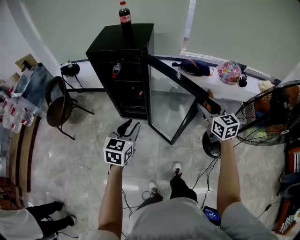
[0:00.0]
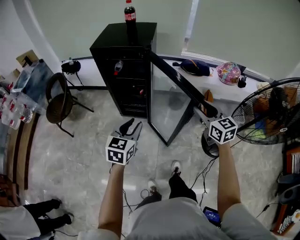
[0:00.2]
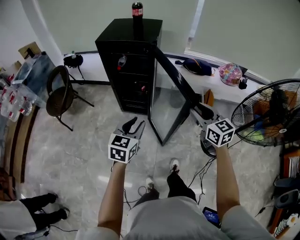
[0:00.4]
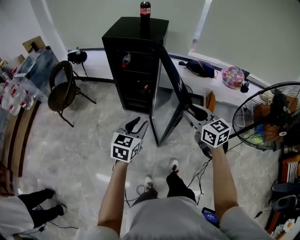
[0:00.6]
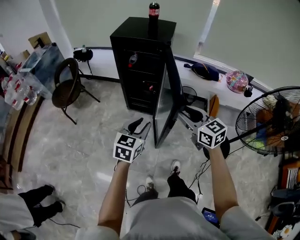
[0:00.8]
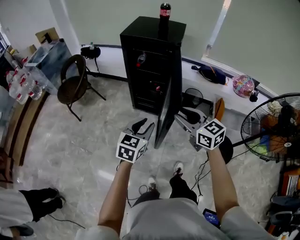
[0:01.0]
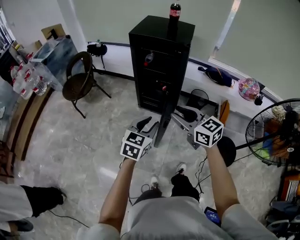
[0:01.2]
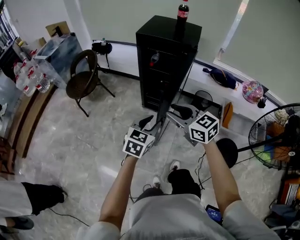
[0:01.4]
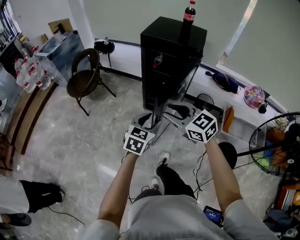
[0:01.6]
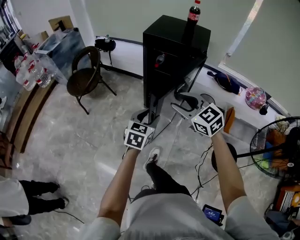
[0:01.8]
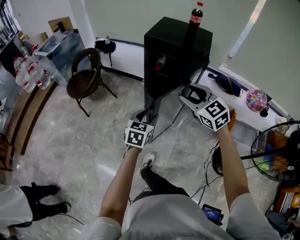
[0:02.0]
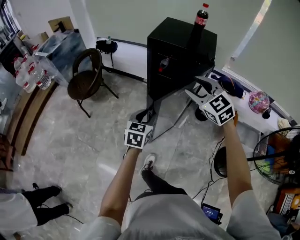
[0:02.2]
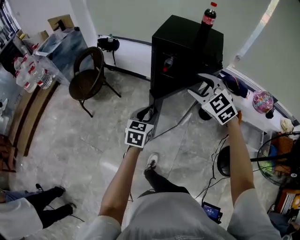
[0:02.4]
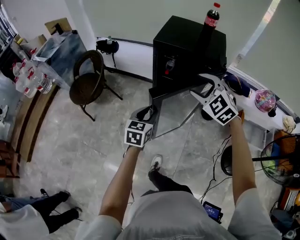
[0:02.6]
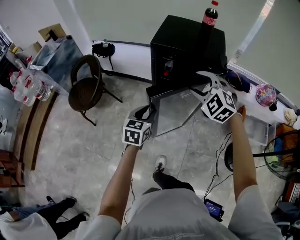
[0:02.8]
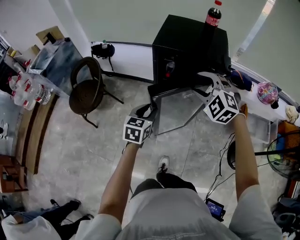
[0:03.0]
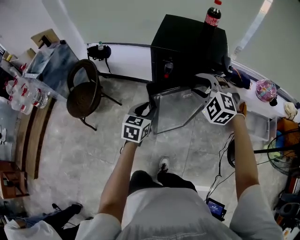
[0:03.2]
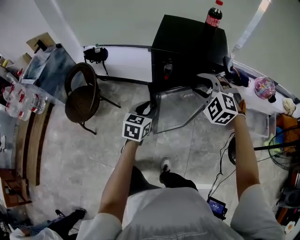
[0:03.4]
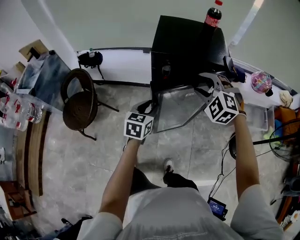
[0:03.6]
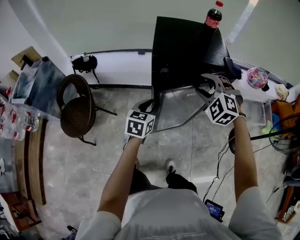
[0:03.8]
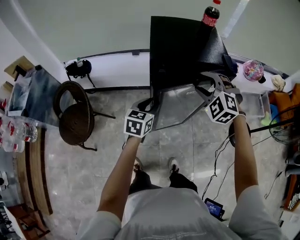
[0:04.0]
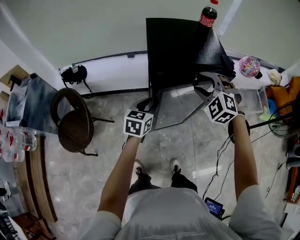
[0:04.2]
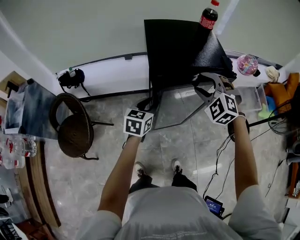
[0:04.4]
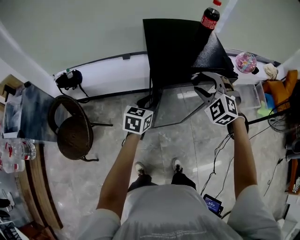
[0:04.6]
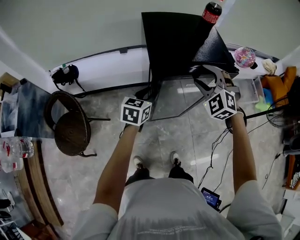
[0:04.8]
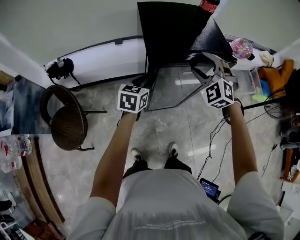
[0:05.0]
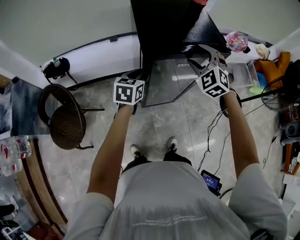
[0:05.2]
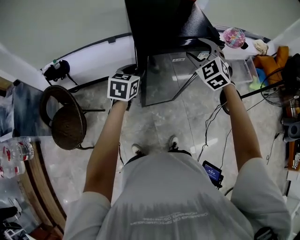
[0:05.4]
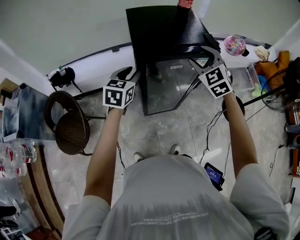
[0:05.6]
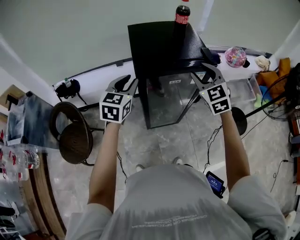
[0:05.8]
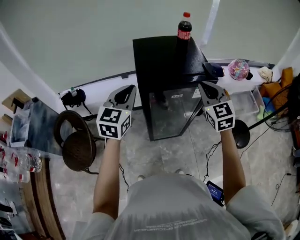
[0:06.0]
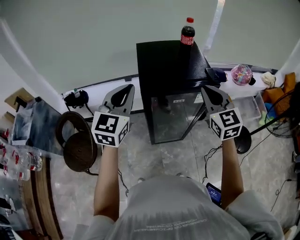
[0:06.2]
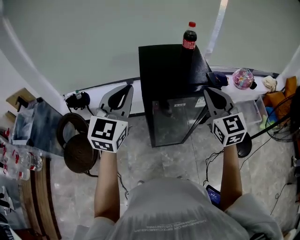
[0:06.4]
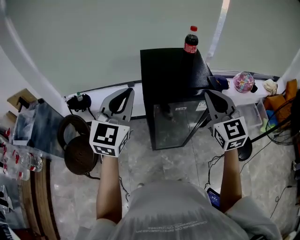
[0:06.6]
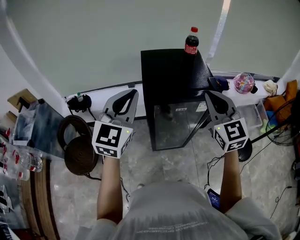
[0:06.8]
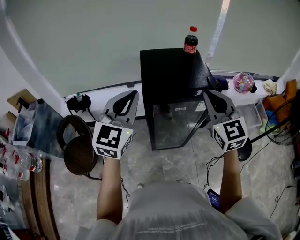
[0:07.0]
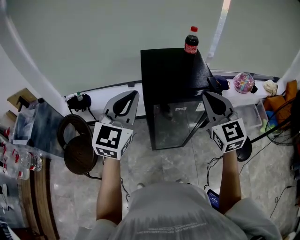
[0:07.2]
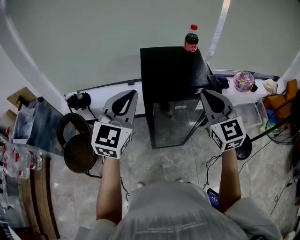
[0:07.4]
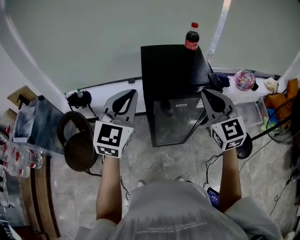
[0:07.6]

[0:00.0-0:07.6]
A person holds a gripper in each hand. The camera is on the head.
0:00.0 to 0:01.6: The right gripper goes some 40 cm to the left, and changes its angle by roughly 50 degrees, while the left gripper moves to the left, approximately 10 cm.
0:01.6 to 0:03.0: The right gripper goes about 25 cm forward, and rotates some 50 degrees; the left gripper travels forward and to the left by about 25 cm.
0:03.0 to 0:04.6: The left gripper changes place by some 20 cm, and turns by roughly 20 degrees. The right gripper moves roughly 10 cm, and turns by some 30 degrees.
0:04.6 to 0:06.0: The right gripper goes some 10 cm upward and to the right, rotates around the line of its fingers by roughly 40 degrees, clockwise from behind, and closes up, while the left gripper moves upward, roughly 20 cm, rotates approximately 30 degrees, and closes.
0:06.0 to 0:07.6: Both grippers travel together upward, approximately 10 cm.

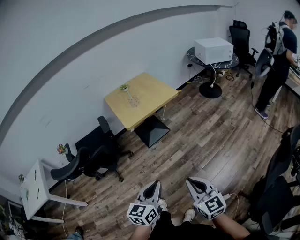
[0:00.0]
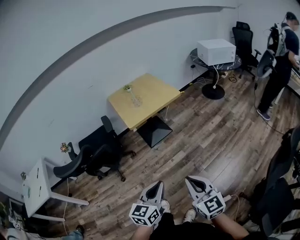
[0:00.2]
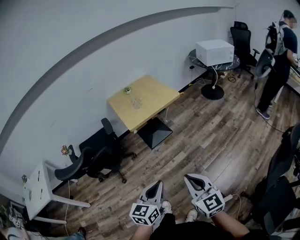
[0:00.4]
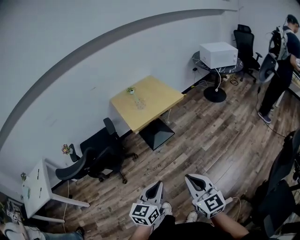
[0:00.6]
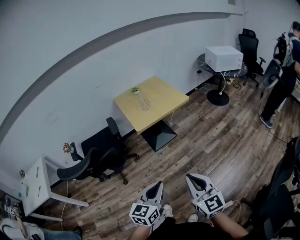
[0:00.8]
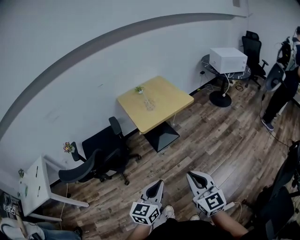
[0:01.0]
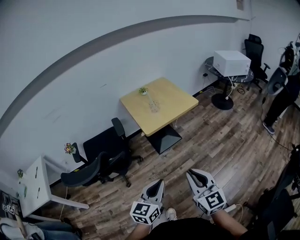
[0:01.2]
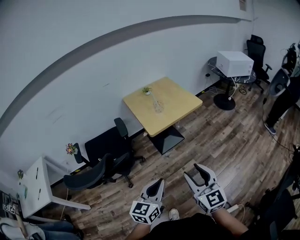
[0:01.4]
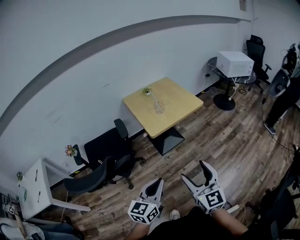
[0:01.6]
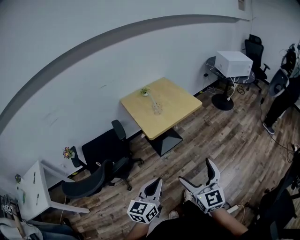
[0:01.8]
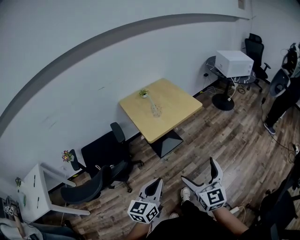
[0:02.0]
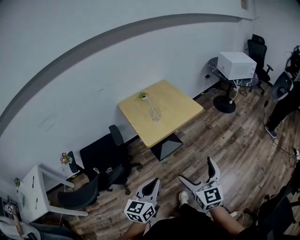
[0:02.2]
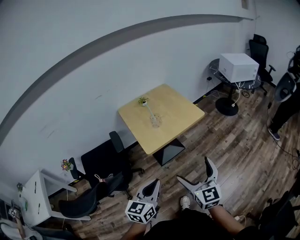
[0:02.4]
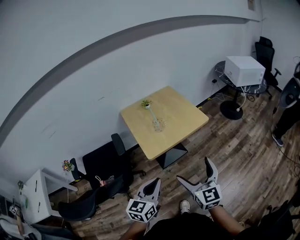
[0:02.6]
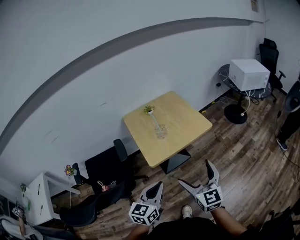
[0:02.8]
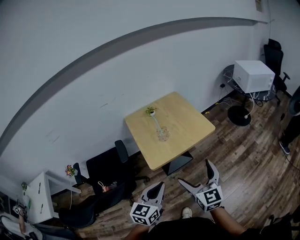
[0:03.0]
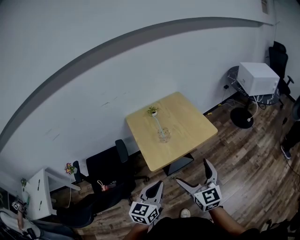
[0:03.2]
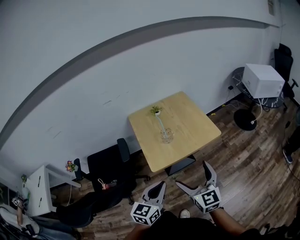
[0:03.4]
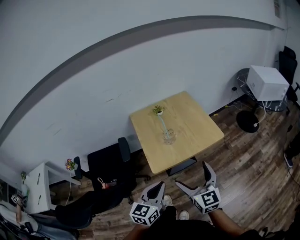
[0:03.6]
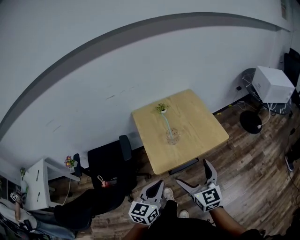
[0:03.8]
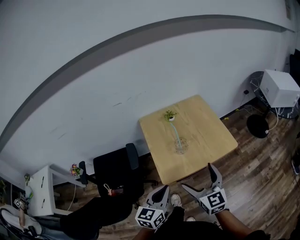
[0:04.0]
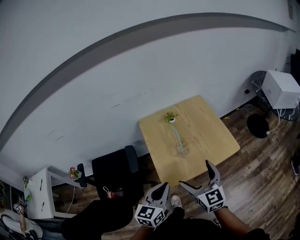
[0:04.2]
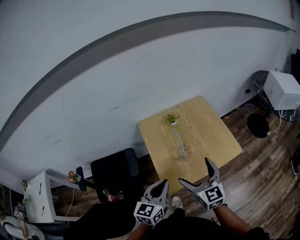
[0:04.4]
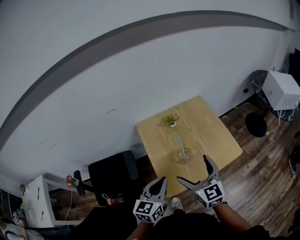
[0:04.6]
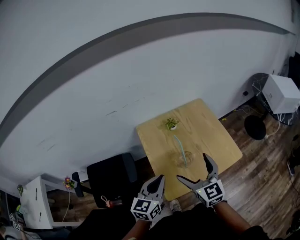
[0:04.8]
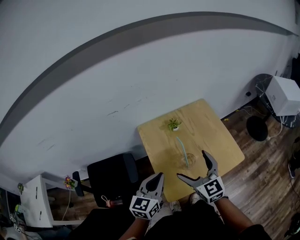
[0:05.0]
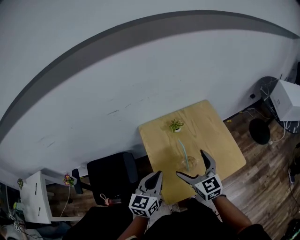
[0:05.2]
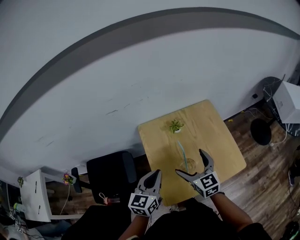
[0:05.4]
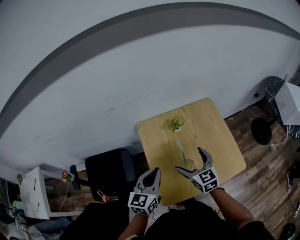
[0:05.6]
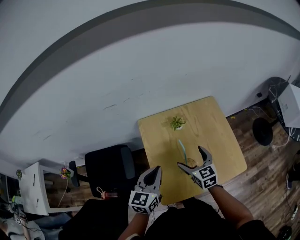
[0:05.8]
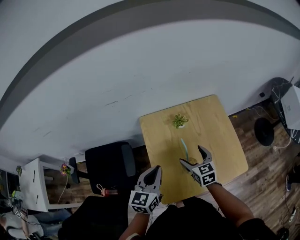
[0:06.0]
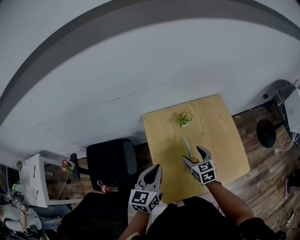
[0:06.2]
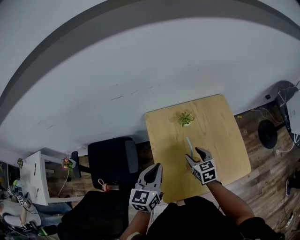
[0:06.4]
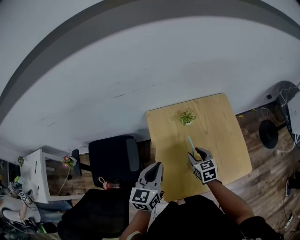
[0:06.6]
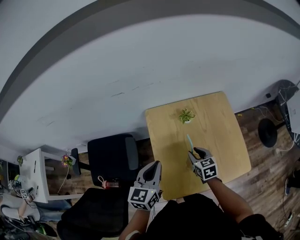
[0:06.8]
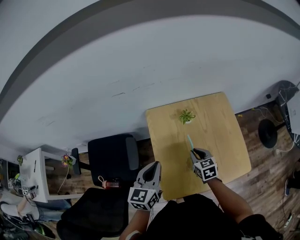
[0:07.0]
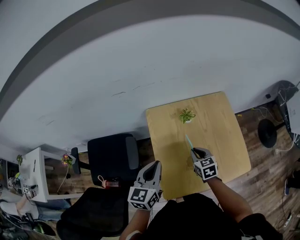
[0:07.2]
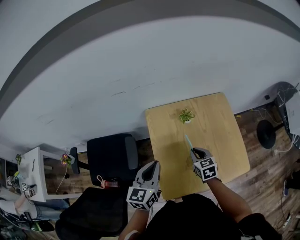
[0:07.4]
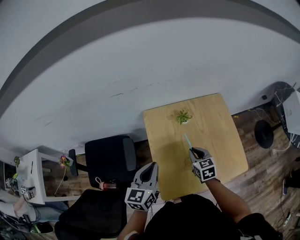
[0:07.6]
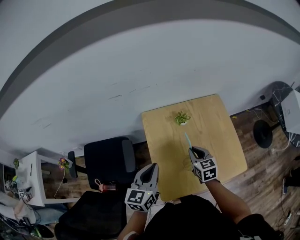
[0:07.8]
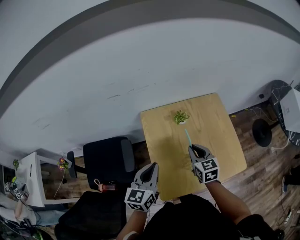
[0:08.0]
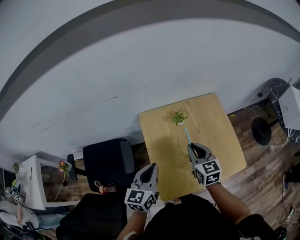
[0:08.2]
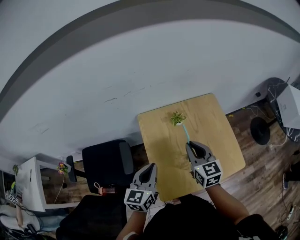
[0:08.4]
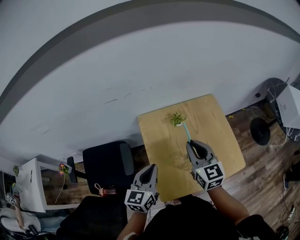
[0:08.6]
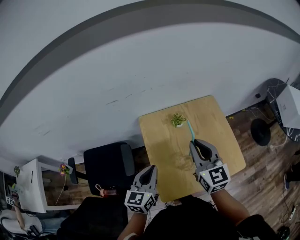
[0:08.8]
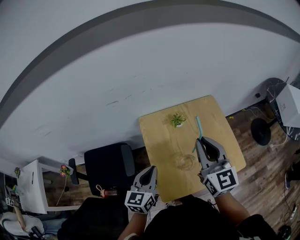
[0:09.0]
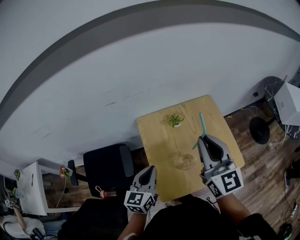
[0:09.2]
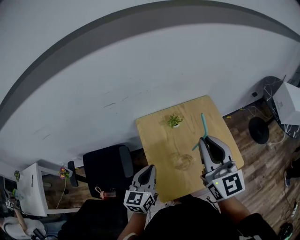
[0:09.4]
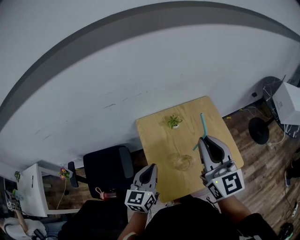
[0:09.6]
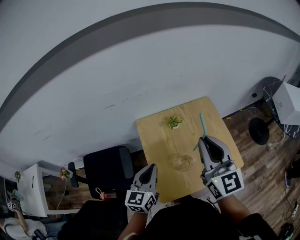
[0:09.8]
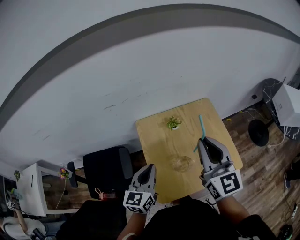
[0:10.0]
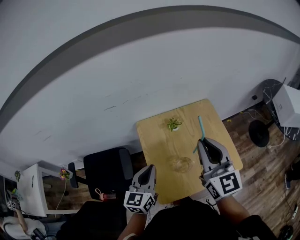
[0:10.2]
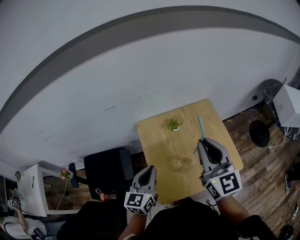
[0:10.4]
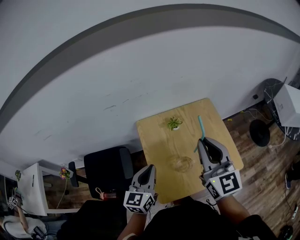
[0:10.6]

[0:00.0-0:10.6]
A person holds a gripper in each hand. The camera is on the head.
0:00.0 to 0:01.6: The grippers both shift to the left and forward by some 20 cm. The right gripper opens.
0:01.6 to 0:03.0: The grippers both shift forward by about 30 cm. The right gripper opens up.
0:03.0 to 0:04.6: The right gripper is displaced forward and to the left by about 30 cm. The left gripper heads forward, covering roughly 30 cm.
0:04.6 to 0:06.0: The left gripper is displaced forward by some 15 cm. Meanwhile the right gripper heads forward and downward, covering roughly 25 cm, and turns by about 20 degrees.
0:06.0 to 0:07.6: The right gripper closes up.
0:07.6 to 0:09.0: The right gripper is displaced upward by approximately 25 cm, and tilts its fingers some 40 degrees upward.
0:09.0 to 0:10.6: The grippers make only small movements.

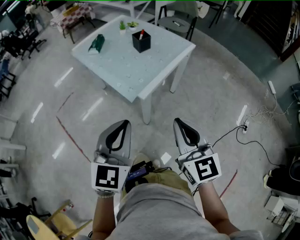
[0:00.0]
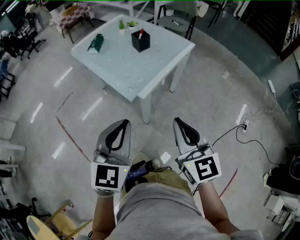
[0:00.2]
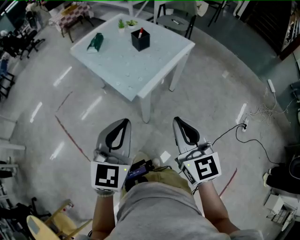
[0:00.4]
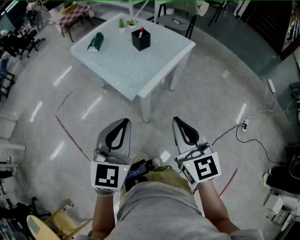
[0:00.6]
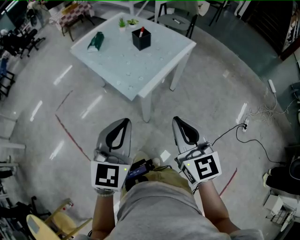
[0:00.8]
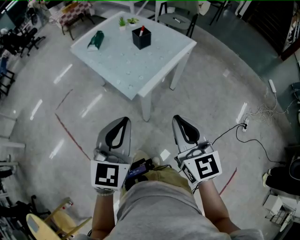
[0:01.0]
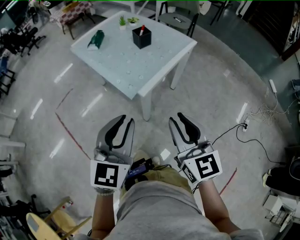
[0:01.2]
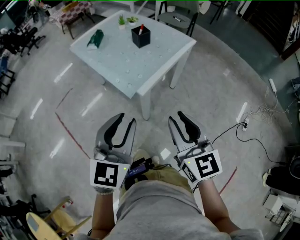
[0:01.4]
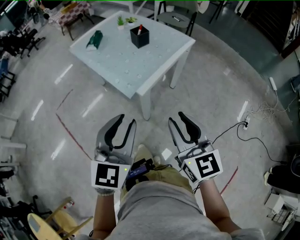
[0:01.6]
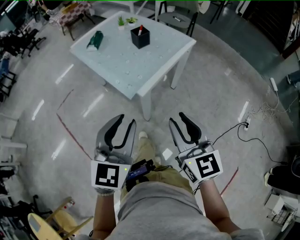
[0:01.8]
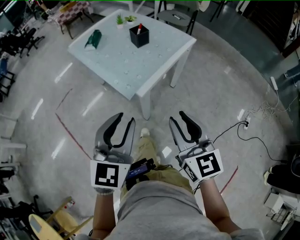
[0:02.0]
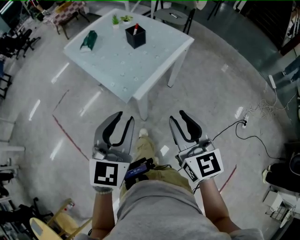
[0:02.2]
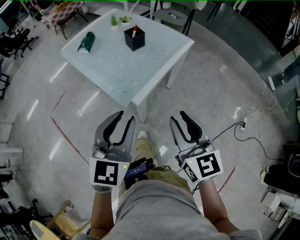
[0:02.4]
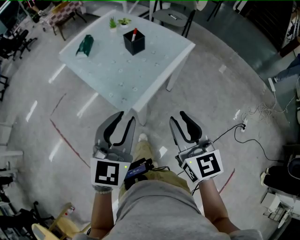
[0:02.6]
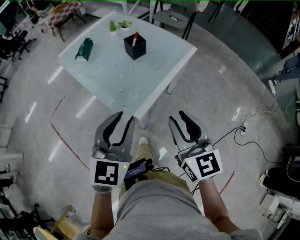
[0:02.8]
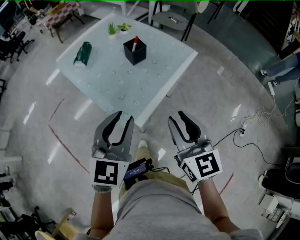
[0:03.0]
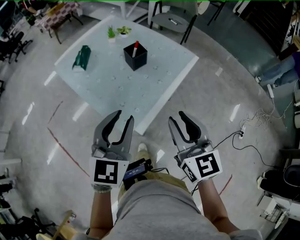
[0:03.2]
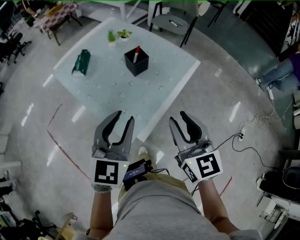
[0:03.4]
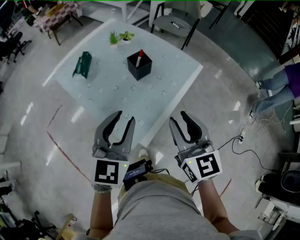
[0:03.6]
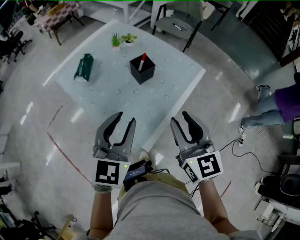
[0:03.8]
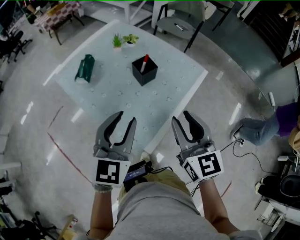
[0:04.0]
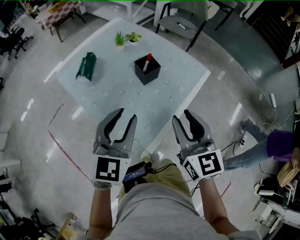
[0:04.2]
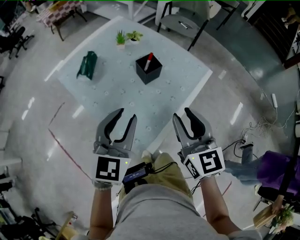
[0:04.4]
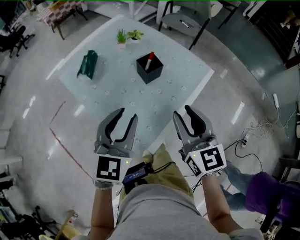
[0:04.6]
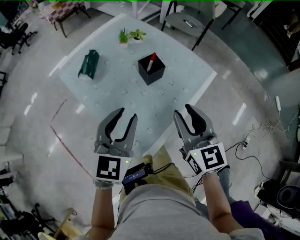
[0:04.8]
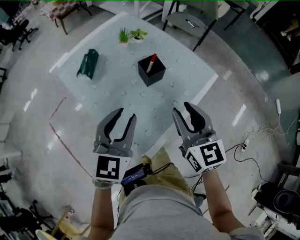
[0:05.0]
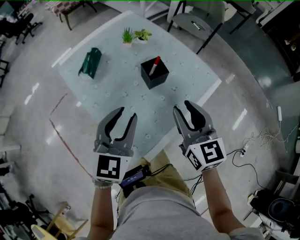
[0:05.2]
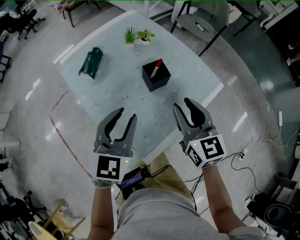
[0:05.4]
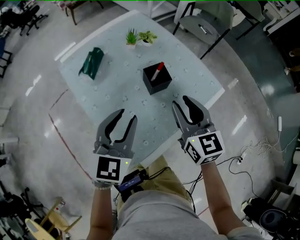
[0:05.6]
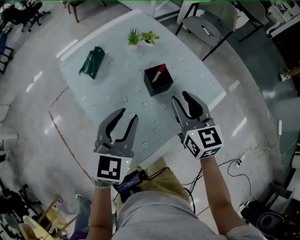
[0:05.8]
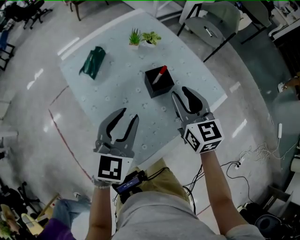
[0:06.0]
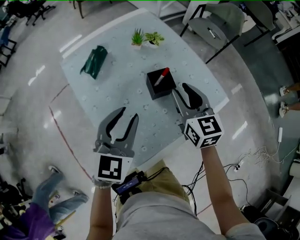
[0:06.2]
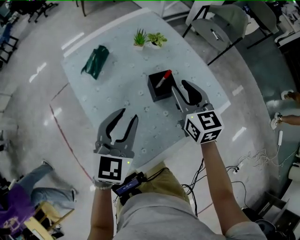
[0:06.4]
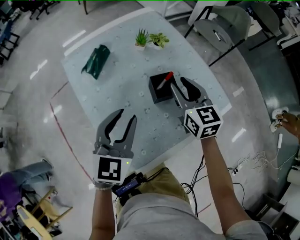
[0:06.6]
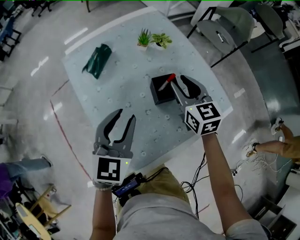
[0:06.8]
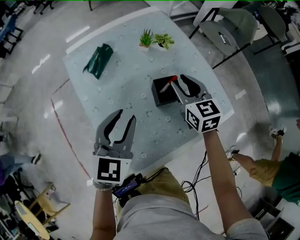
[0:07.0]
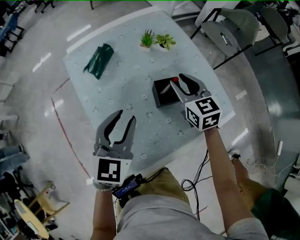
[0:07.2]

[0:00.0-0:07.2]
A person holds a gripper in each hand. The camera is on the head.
0:00.0 to 0:01.4: The right gripper opens up, while the left gripper opens.
0:01.4 to 0:02.8: Both grippers move forward, roughly 15 cm.
0:02.8 to 0:04.4: The grippers both shift forward by about 20 cm.
0:04.4 to 0:05.8: The left gripper is displaced forward by roughly 10 cm, while the right gripper goes about 15 cm forward.
0:05.8 to 0:07.2: The right gripper travels forward and downward by about 15 cm. Meanwhile the left gripper goes approximately 5 cm forward.
